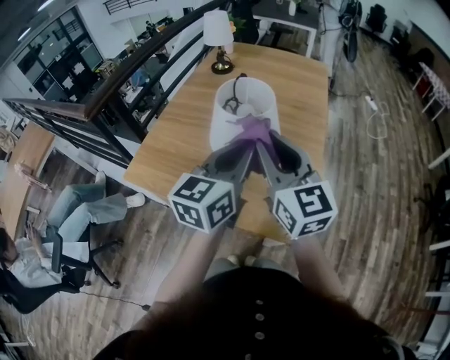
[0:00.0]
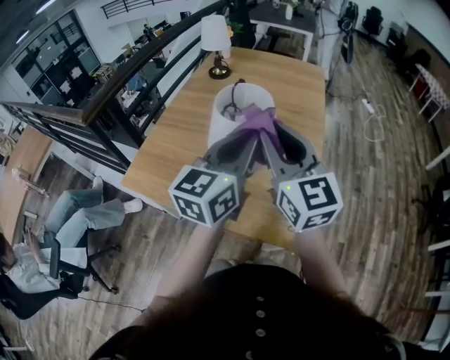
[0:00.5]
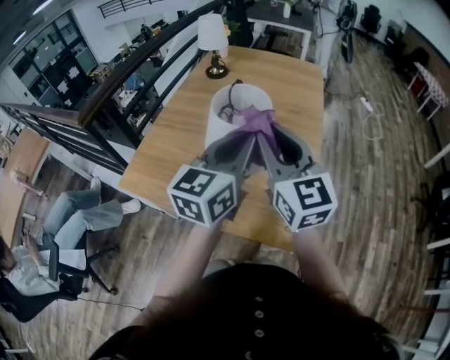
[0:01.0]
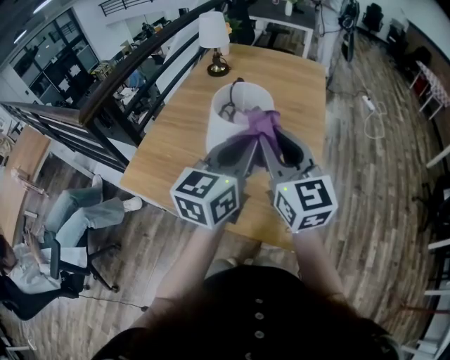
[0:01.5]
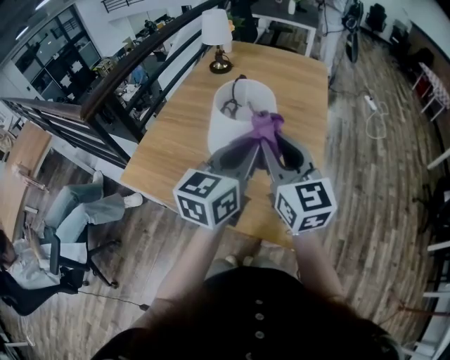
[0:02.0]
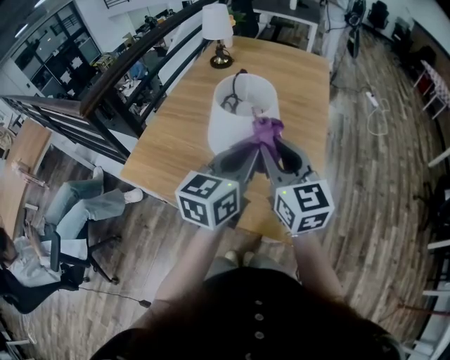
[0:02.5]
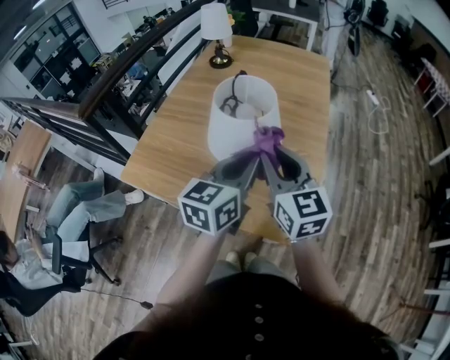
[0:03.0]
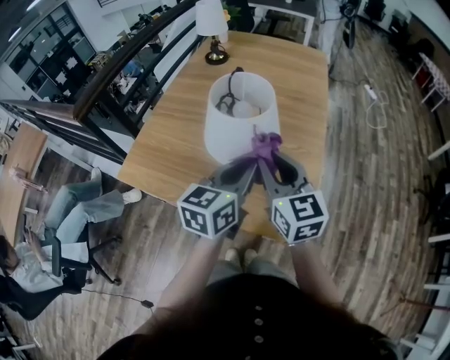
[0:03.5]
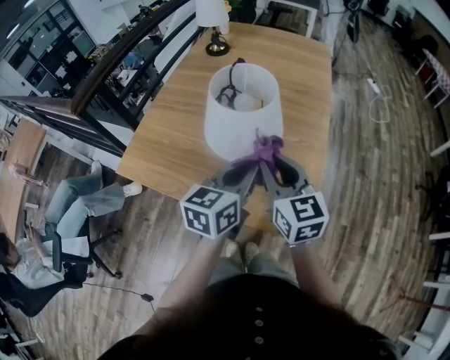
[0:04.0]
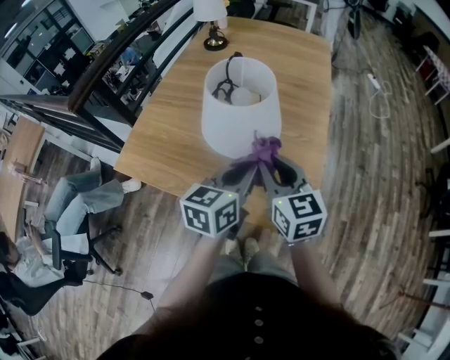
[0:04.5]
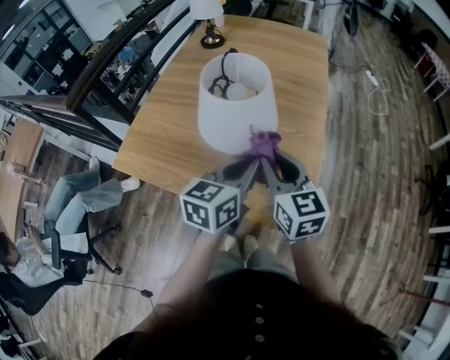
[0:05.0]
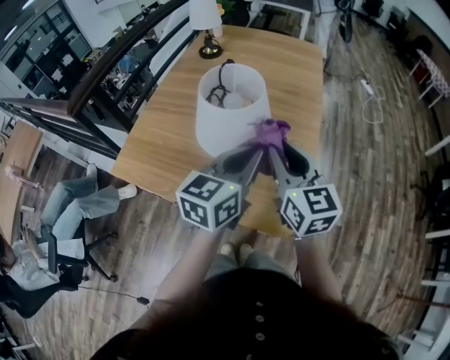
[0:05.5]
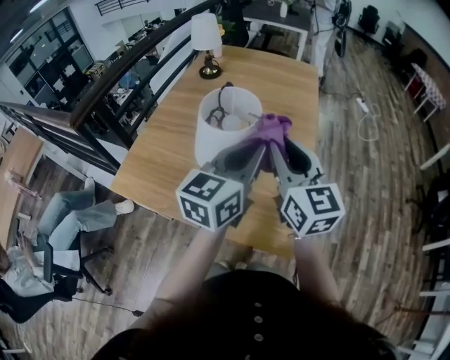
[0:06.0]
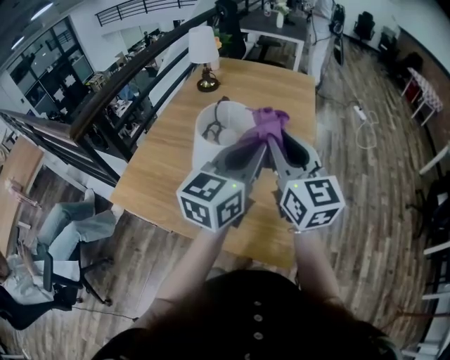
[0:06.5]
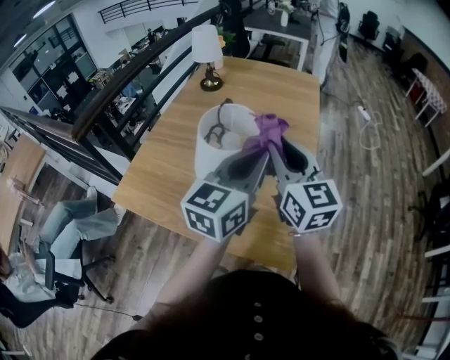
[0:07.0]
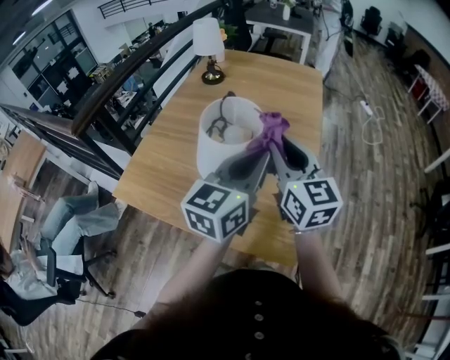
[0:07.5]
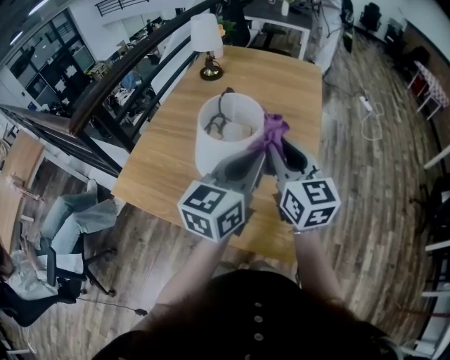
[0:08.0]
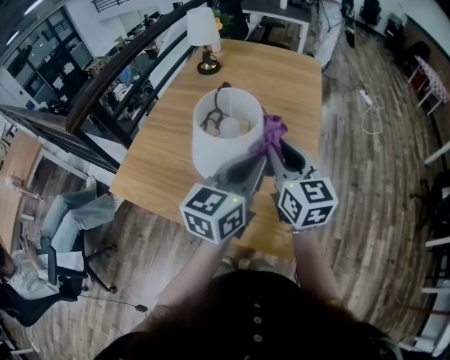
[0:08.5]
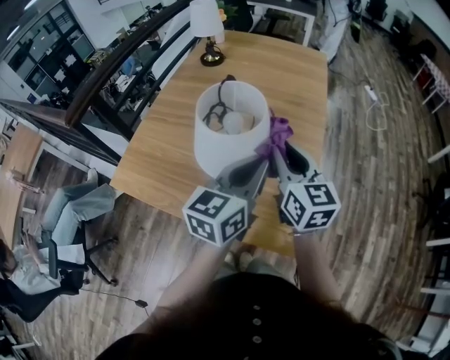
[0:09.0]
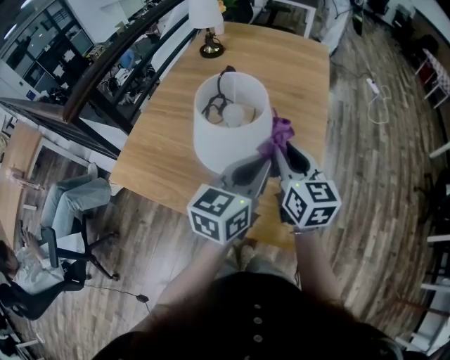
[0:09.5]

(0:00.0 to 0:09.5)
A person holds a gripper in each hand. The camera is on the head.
0:00.0 - 0:02.0: There are only small adjustments of the grippers.
0:02.0 - 0:04.0: Both grippers move downward, some 10 cm.
0:04.0 - 0:05.5: The right gripper ends up approximately 5 cm from where it was. Meanwhile the left gripper shifts some 5 cm upward.
0:05.5 - 0:07.5: The right gripper travels forward by roughly 5 cm. The left gripper is displaced upward by about 5 cm.
0:07.5 - 0:09.5: The grippers both shift downward by roughly 10 cm.

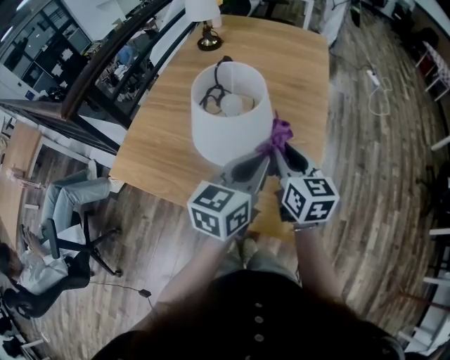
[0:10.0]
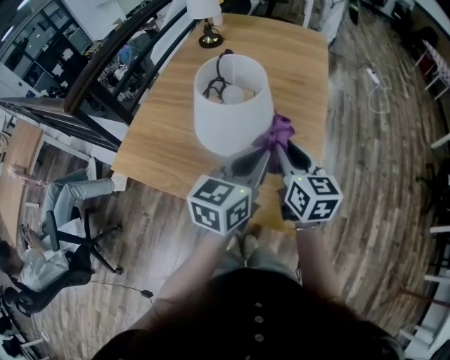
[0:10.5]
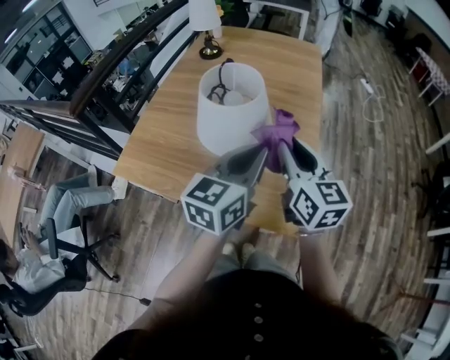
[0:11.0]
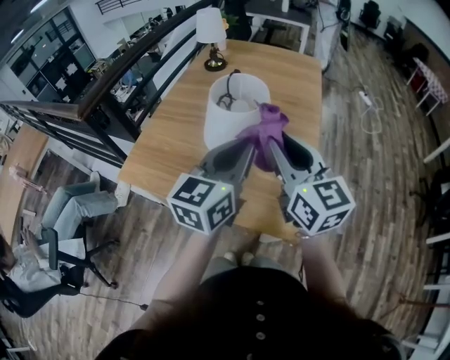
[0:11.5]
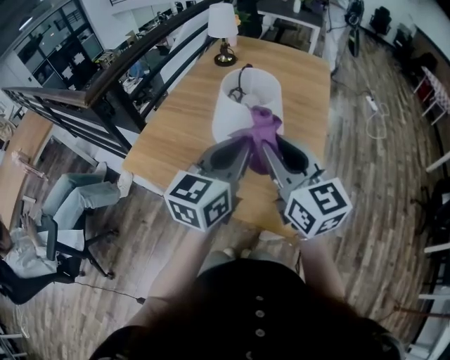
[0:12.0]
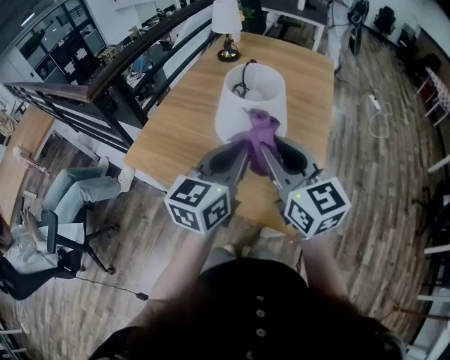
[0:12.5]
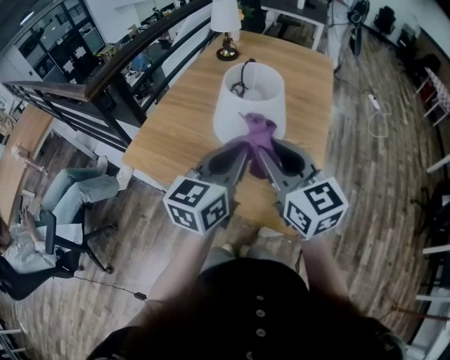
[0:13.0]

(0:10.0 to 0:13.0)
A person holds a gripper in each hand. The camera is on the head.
0:10.0 - 0:11.5: The left gripper is displaced upward and to the left by some 10 cm. The right gripper shifts roughly 15 cm upward and backward, and swivels about 20 degrees.
0:11.5 - 0:13.0: The right gripper shifts by some 5 cm. Meanwhile the left gripper shifts by about 5 cm.

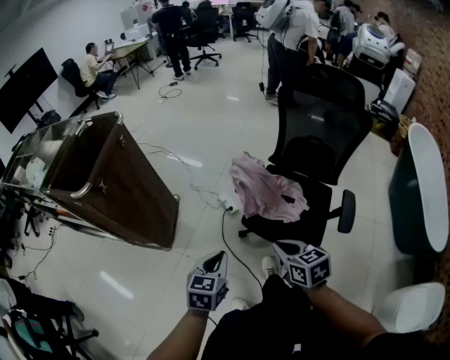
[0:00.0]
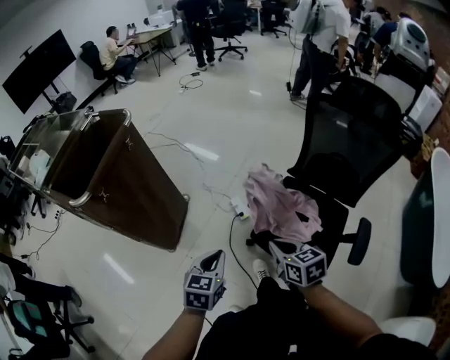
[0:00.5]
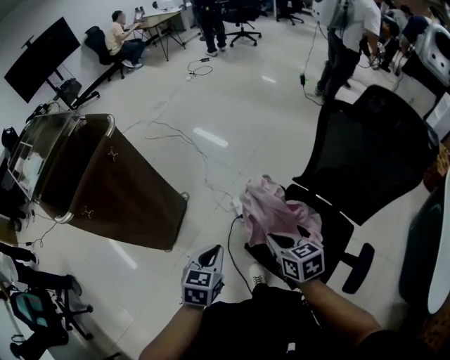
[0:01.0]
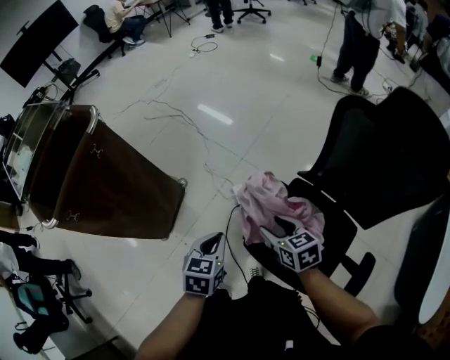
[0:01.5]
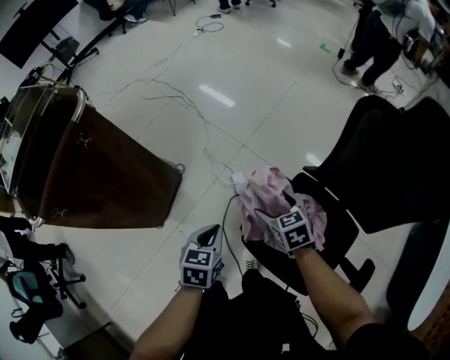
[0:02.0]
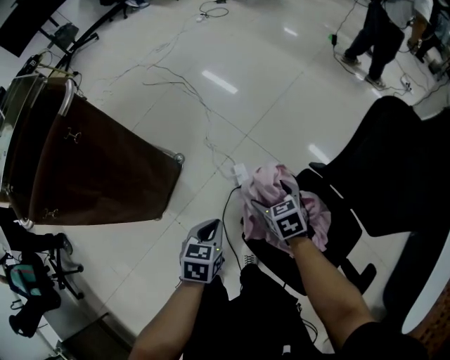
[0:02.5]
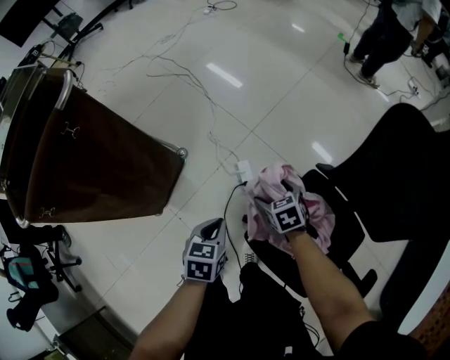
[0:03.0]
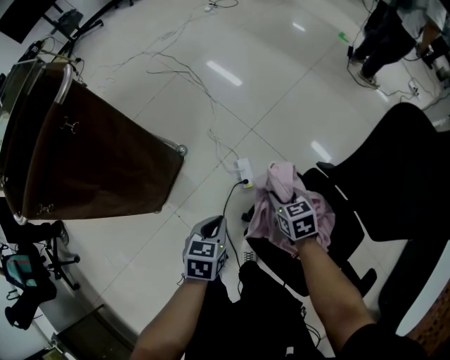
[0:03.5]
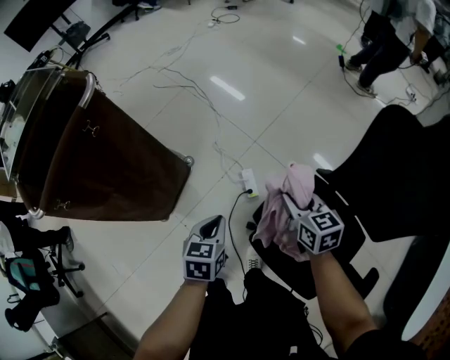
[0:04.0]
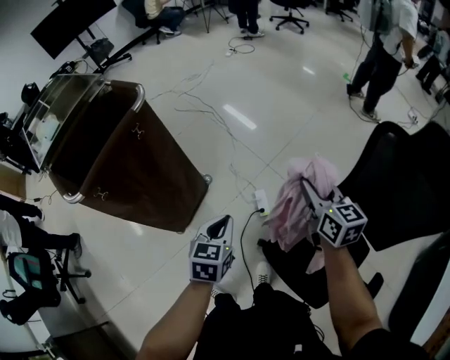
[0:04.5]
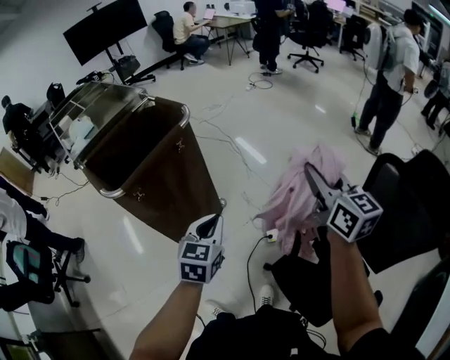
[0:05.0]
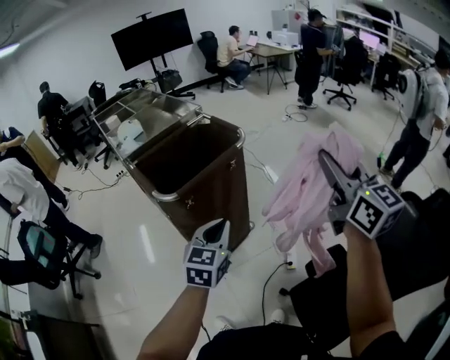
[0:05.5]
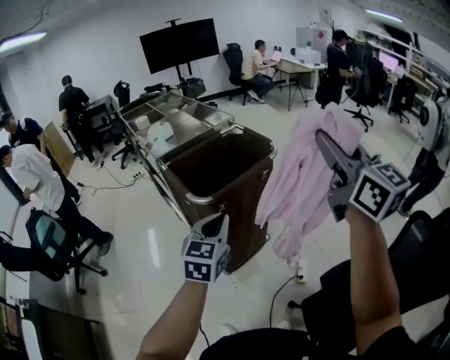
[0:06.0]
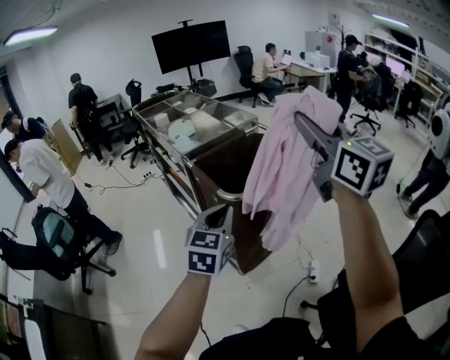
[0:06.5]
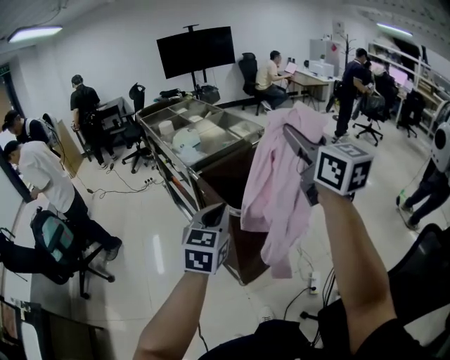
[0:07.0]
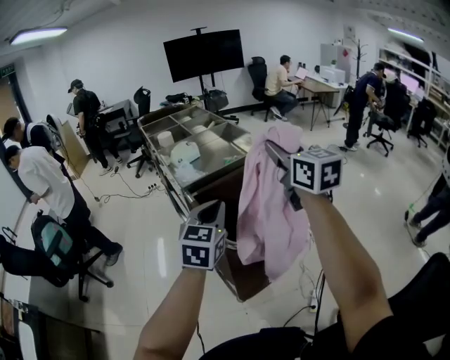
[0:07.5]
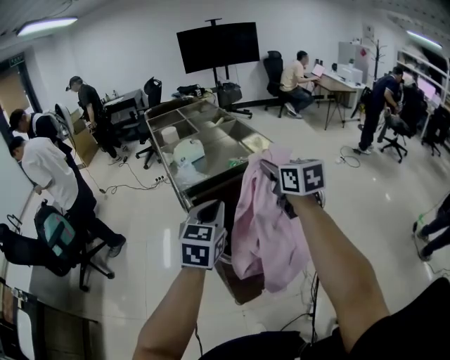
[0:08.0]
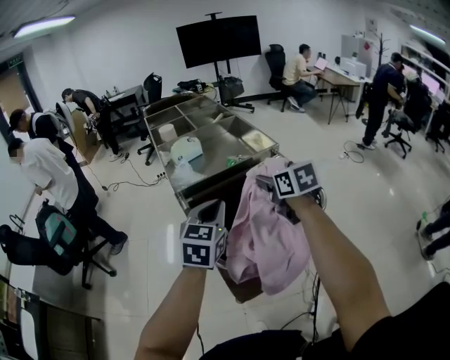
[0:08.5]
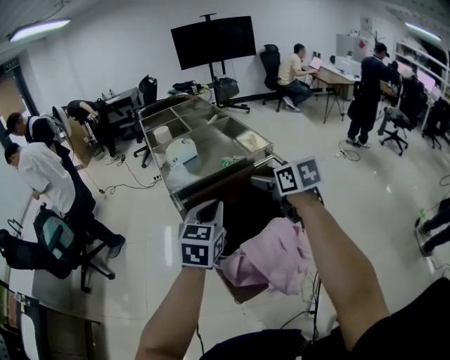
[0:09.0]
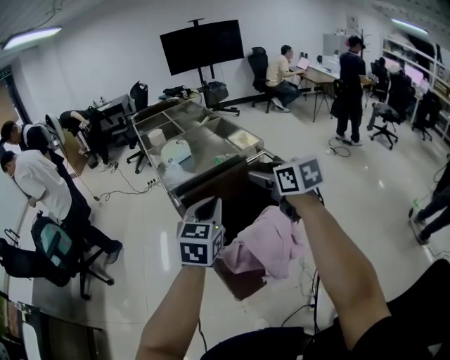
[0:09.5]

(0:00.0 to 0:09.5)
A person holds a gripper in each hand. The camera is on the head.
0:00.0 - 0:02.0: The right gripper travels forward and downward by roughly 40 cm, rotates roughly 20 degrees, and opens its fingers. Meanwhile the left gripper heads forward, covering about 30 cm, and changes its angle by some 20 degrees.
0:02.0 - 0:04.0: The right gripper goes downward and returns, approximately 10 cm each way, and closes.
0:04.0 - 0:05.5: Both grippers travel together upward and to the left, some 40 cm. The left gripper rotates some 30 degrees. Meanwhile the right gripper tilts its fingers some 40 degrees upward.
0:05.5 - 0:07.5: The left gripper is displaced to the left, forward and upward by about 30 cm; the right gripper heads to the left and forward, covering approximately 40 cm.
0:07.5 - 0:09.5: The left gripper moves about 5 cm, while the right gripper shifts approximately 15 cm downward, swivels approximately 20 degrees, and opens.

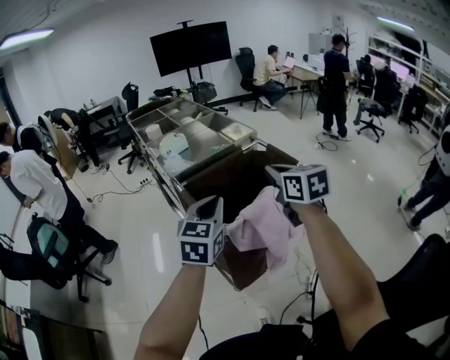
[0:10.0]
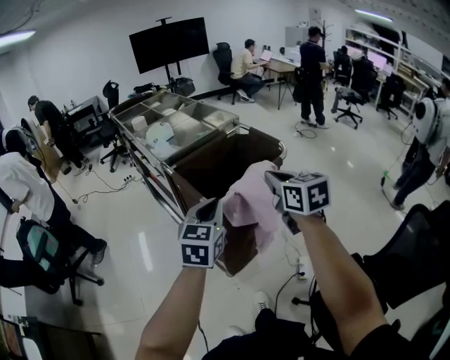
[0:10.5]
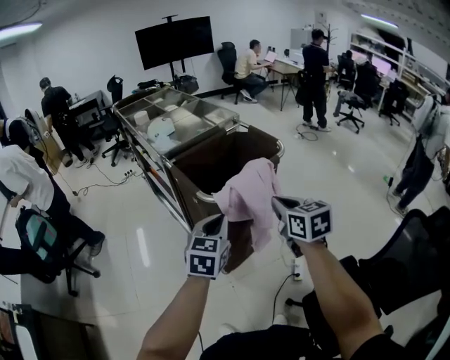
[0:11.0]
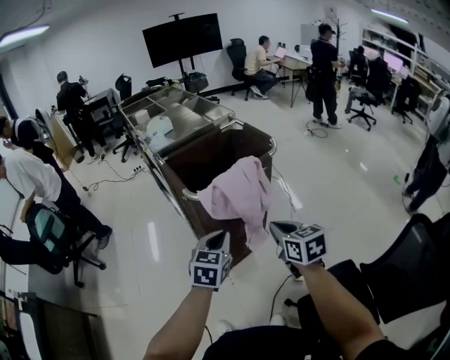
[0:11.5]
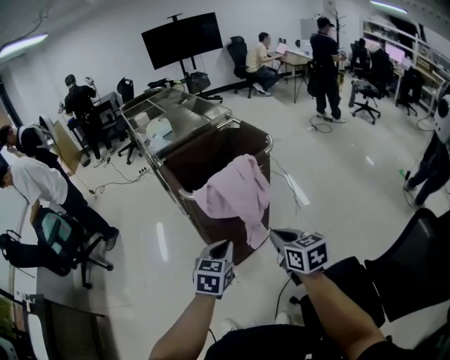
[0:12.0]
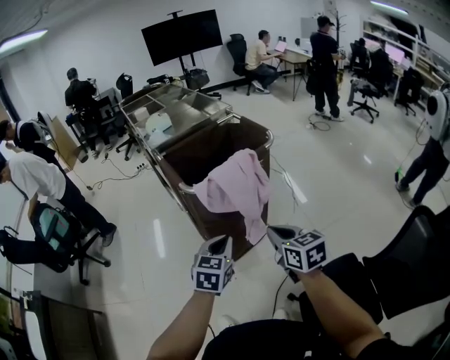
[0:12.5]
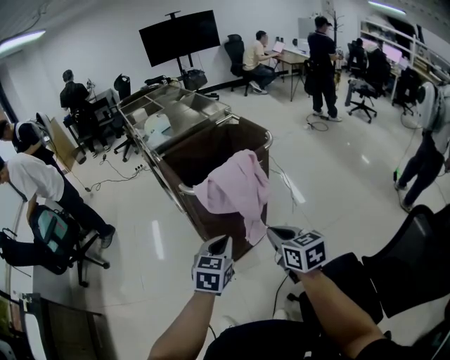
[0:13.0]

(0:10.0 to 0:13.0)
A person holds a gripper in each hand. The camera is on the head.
0:10.0 - 0:11.5: The right gripper is displaced backward and downward by approximately 30 cm. The left gripper moves backward, downward and to the right, approximately 25 cm.
0:11.5 - 0:13.0: The grippers stay close to where they were, moving slightly.

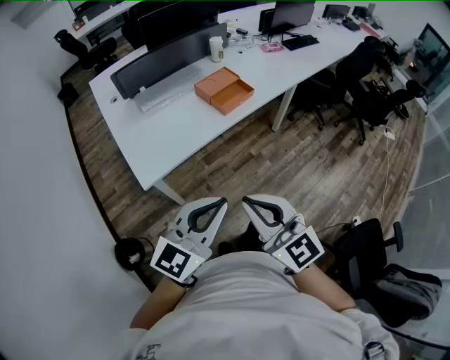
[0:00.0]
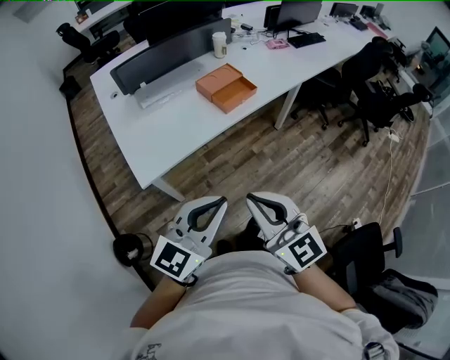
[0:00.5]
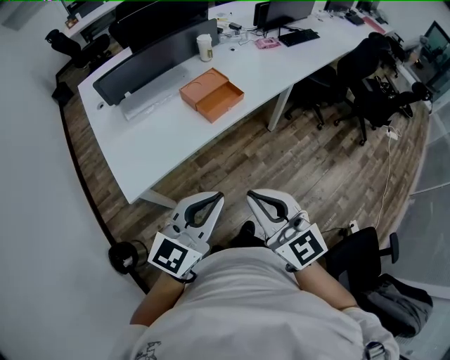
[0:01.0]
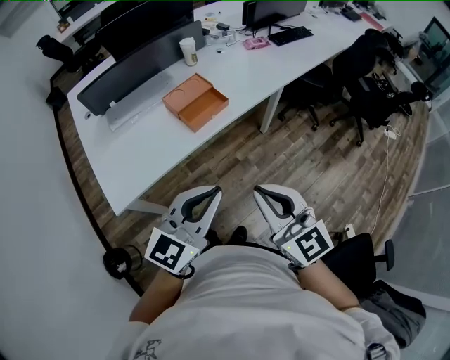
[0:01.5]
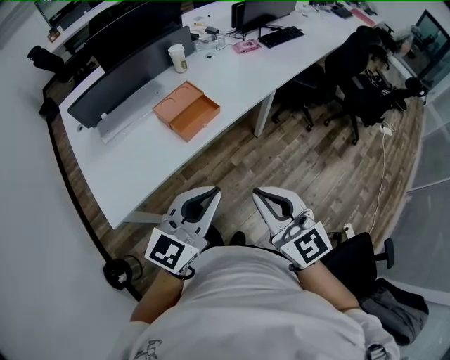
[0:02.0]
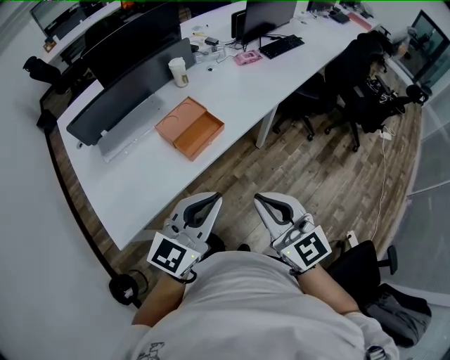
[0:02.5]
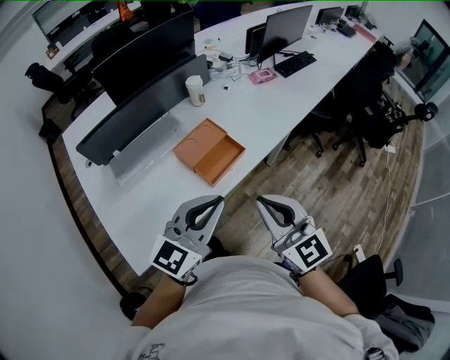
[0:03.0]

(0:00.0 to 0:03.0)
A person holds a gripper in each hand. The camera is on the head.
0:00.0 - 0:01.5: Both grippers move forward and to the right, about 30 cm.
0:01.5 - 0:03.0: Both grippers move forward and to the left, about 25 cm.
